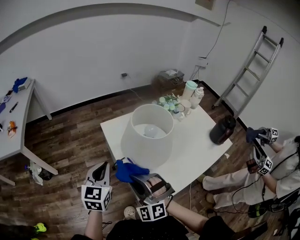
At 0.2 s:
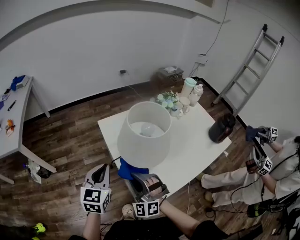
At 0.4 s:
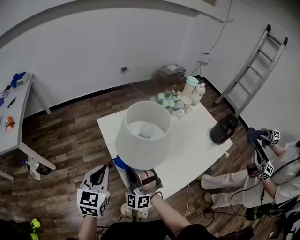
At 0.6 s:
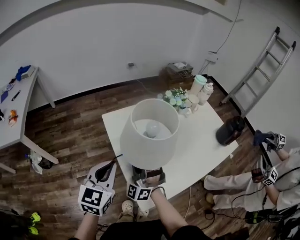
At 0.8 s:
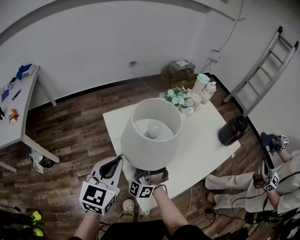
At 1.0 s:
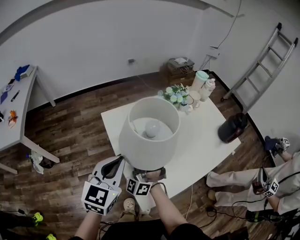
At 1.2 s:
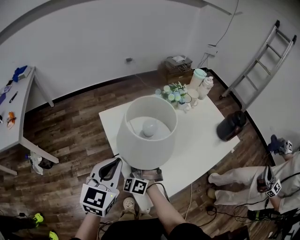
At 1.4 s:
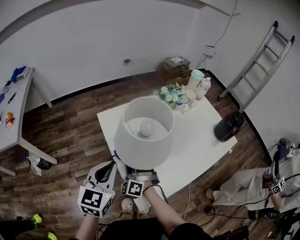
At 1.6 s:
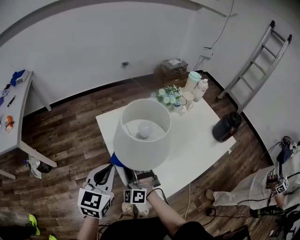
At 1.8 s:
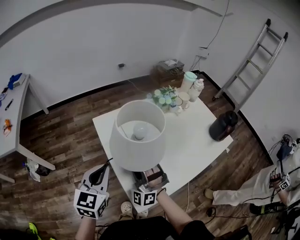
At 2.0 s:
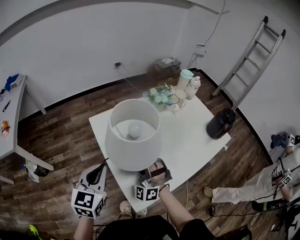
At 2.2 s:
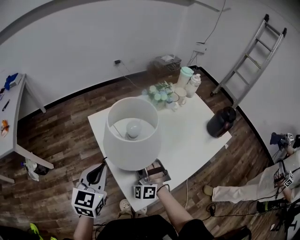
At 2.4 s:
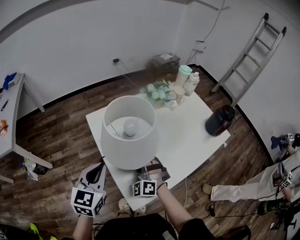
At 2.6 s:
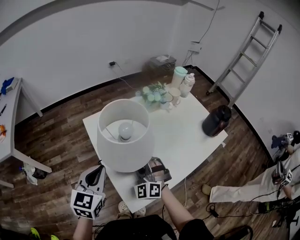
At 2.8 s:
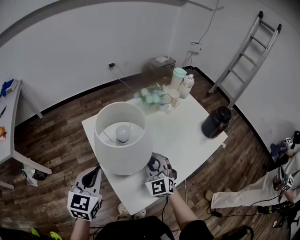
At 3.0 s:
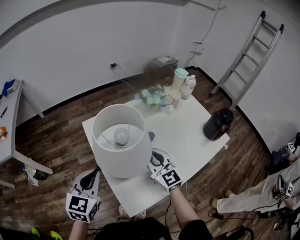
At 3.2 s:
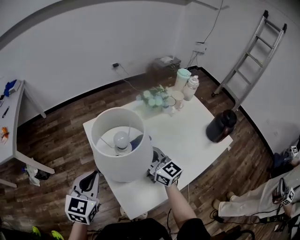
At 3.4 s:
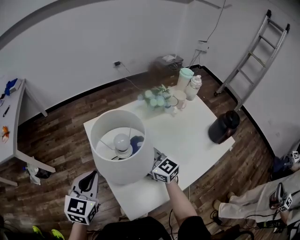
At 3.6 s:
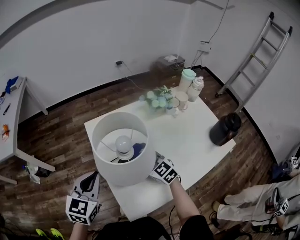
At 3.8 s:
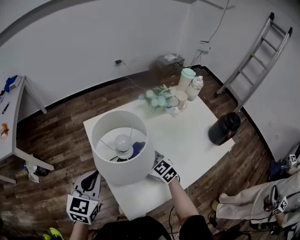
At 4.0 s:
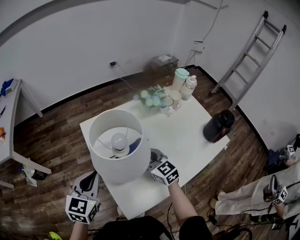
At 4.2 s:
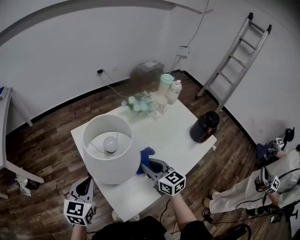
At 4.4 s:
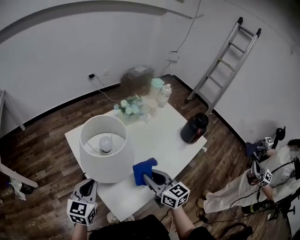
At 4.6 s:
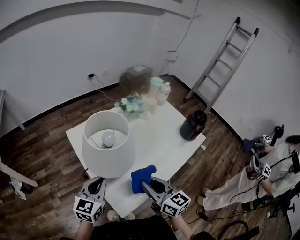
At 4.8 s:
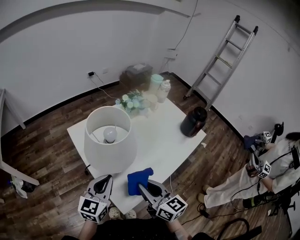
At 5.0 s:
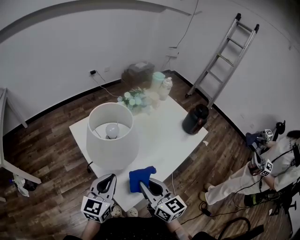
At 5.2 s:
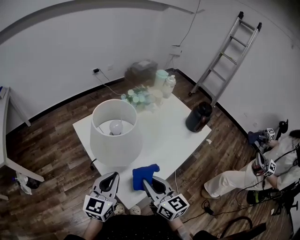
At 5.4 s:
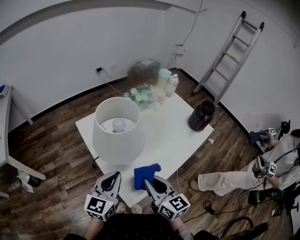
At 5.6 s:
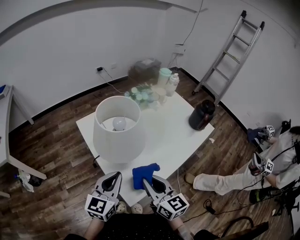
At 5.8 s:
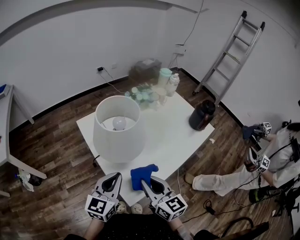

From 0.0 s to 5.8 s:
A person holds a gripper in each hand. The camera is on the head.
From 0.0 s to 1.4 s: The right gripper moves downward and forward, some 15 cm, and rotates some 20 degrees. Meanwhile the left gripper moves to the right, approximately 5 cm.
From 1.4 s to 2.8 s: The right gripper shifts approximately 20 cm to the right and upward, and rotates some 30 degrees.
From 2.8 s to 4.4 s: The right gripper moves backward and to the right, some 10 cm, and twists approximately 50 degrees clockwise, seen from behind.
From 4.4 s to 5.8 s: The left gripper moves backward and to the right, approximately 10 cm. The right gripper is displaced backward and to the left by approximately 10 cm.

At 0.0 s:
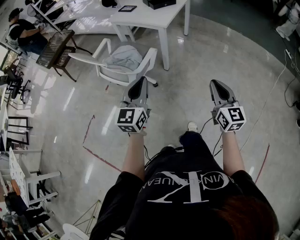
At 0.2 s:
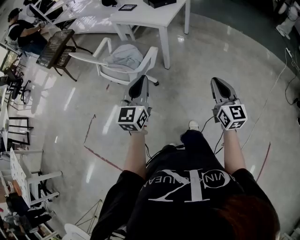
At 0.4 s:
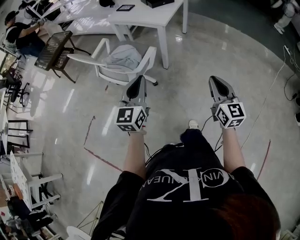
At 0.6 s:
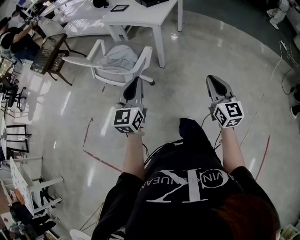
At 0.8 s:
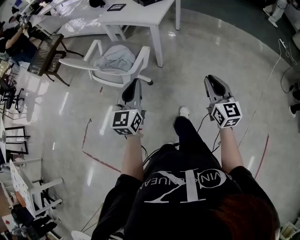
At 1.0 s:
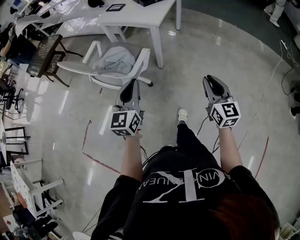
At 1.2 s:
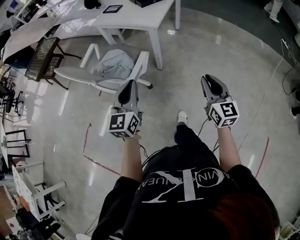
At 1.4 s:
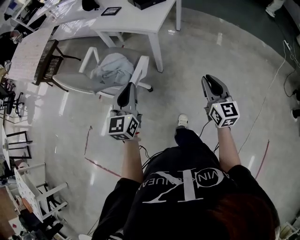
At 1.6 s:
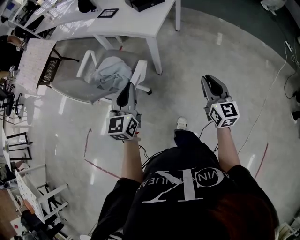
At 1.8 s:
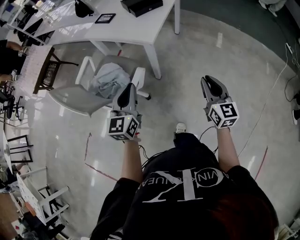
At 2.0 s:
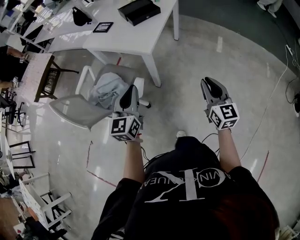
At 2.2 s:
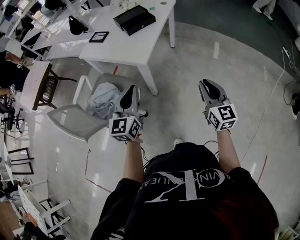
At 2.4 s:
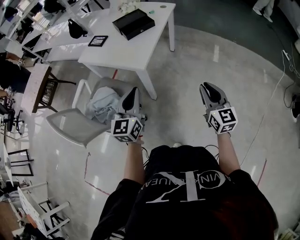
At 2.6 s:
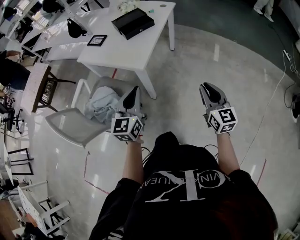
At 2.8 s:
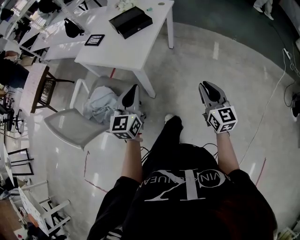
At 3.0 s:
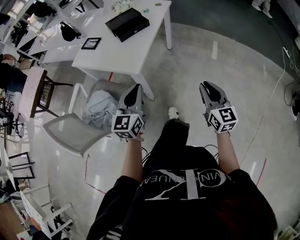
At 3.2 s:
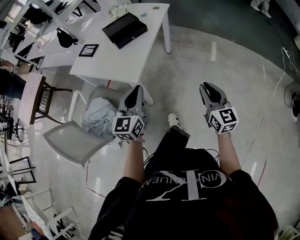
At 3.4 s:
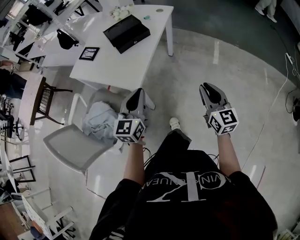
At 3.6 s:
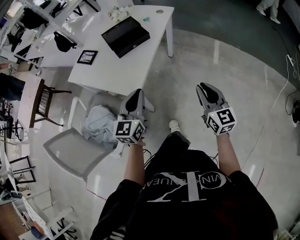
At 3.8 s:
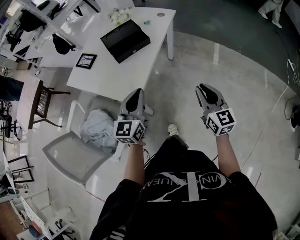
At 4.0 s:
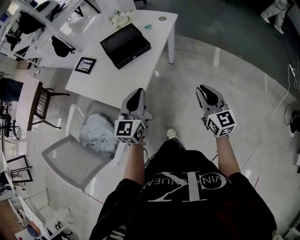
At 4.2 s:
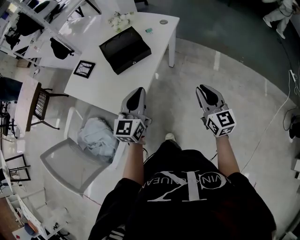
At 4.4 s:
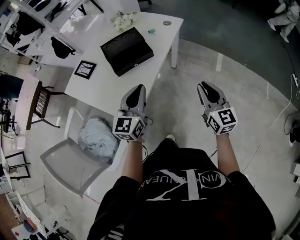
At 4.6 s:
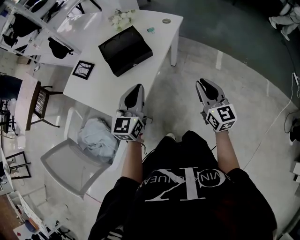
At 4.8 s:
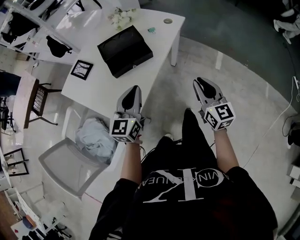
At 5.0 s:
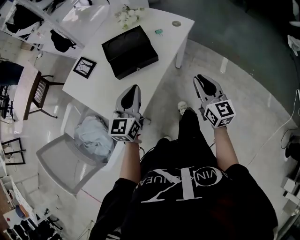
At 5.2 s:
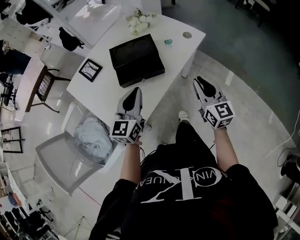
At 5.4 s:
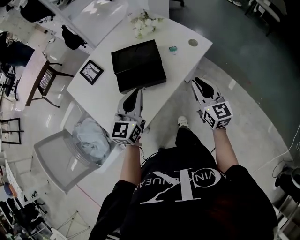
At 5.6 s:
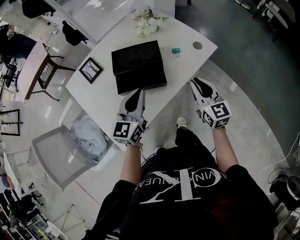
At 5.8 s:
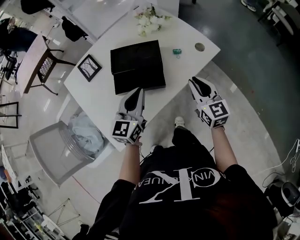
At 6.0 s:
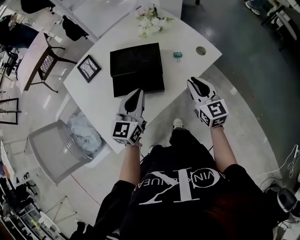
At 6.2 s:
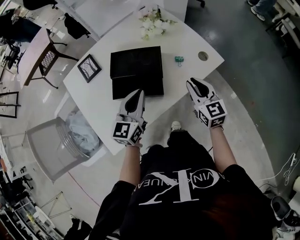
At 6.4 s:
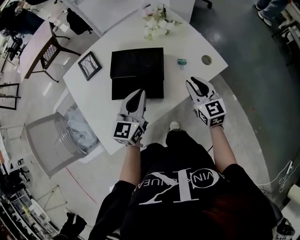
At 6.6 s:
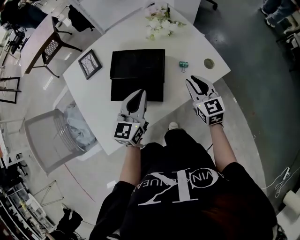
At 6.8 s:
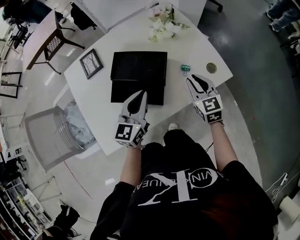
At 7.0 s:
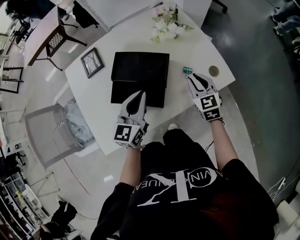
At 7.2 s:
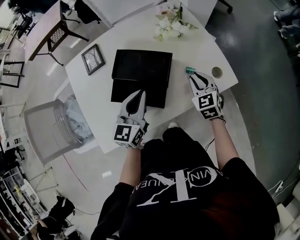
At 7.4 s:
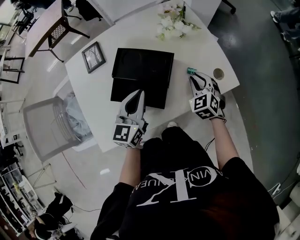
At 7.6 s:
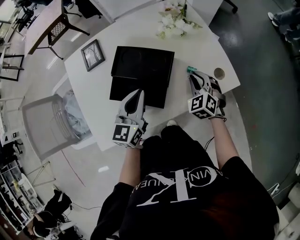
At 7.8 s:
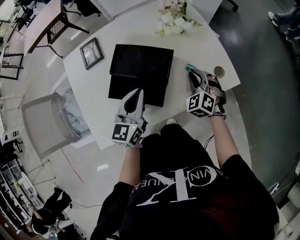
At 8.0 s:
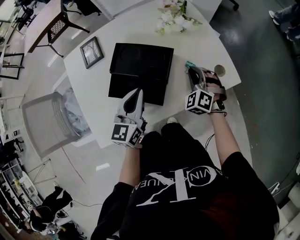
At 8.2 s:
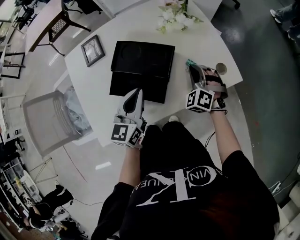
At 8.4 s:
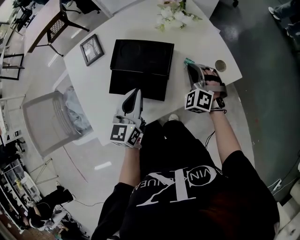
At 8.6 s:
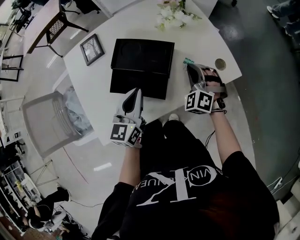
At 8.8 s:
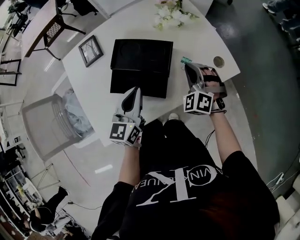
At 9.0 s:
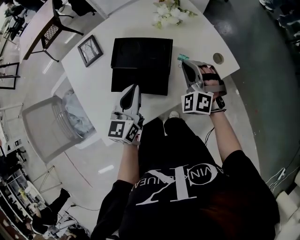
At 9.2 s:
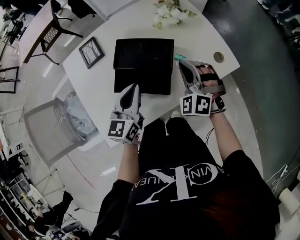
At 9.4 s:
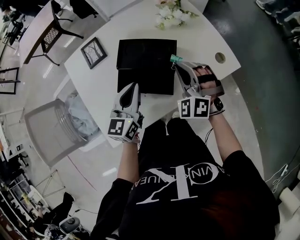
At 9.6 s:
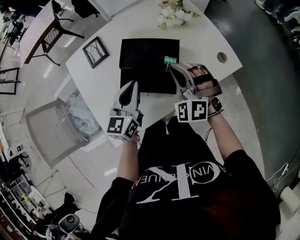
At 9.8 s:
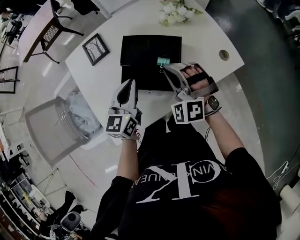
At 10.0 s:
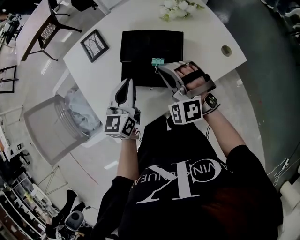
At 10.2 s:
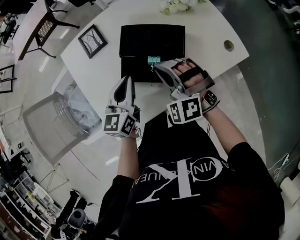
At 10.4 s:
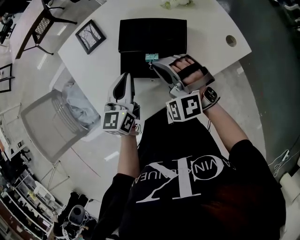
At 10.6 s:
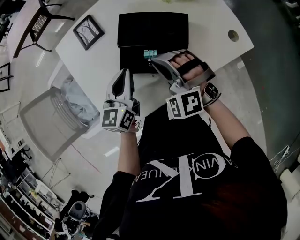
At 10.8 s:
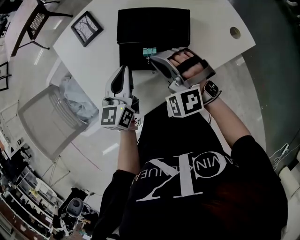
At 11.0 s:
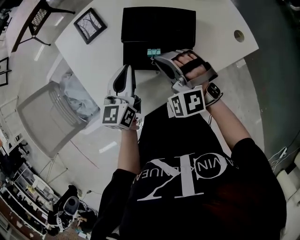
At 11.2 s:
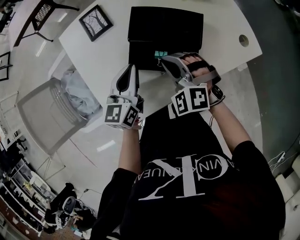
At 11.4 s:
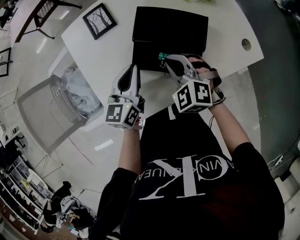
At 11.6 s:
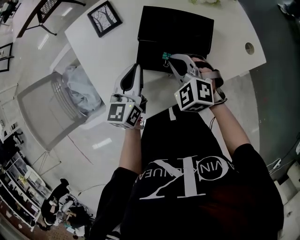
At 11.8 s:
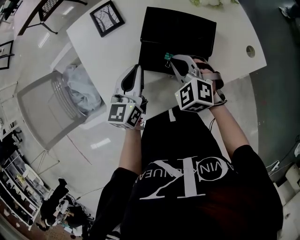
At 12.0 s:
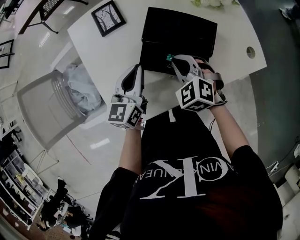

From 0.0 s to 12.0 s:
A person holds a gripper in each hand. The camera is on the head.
From 0.0 s to 1.6 s: The grippers both shift forward by approximately 20 cm.
From 1.6 s to 3.0 s: Both grippers move forward and to the right, roughly 25 cm.
From 3.0 s to 4.4 s: The grippers both shift forward by approximately 30 cm.
From 4.4 s to 6.0 s: The right gripper moves about 30 cm, and turns by approximately 30 degrees. Meanwhile the left gripper changes place by roughly 20 cm, and turns by approximately 20 degrees.
From 6.0 s to 7.6 s: The left gripper heads forward, covering approximately 5 cm. Meanwhile the right gripper goes roughly 20 cm forward and downward, and rotates around the line of its fingers by approximately 50 degrees, counterclockwise from behind.
From 7.6 s to 9.0 s: The right gripper heads upward and to the left, covering about 10 cm, and rotates about 20 degrees.
From 9.0 s to 10.4 s: The right gripper travels to the left by about 15 cm; the left gripper is displaced to the left by roughly 5 cm.
From 10.4 s to 12.0 s: The left gripper changes place by roughly 5 cm. Meanwhile the right gripper travels downward by about 10 cm, and turns by roughly 30 degrees.

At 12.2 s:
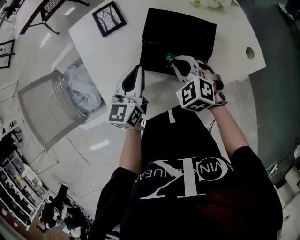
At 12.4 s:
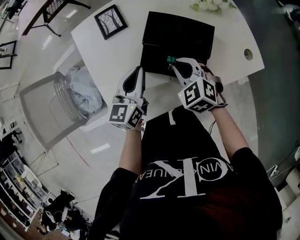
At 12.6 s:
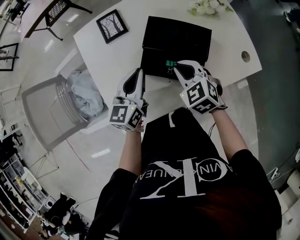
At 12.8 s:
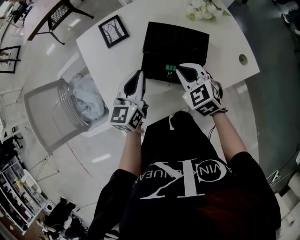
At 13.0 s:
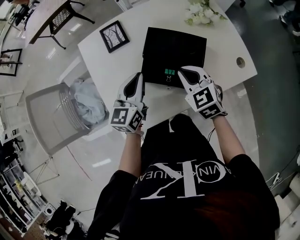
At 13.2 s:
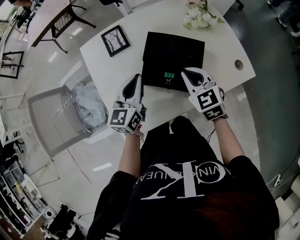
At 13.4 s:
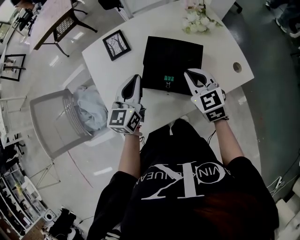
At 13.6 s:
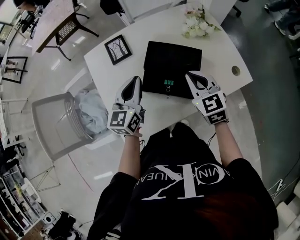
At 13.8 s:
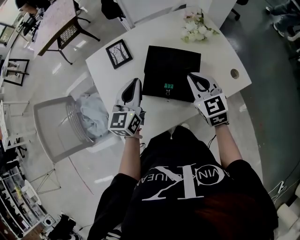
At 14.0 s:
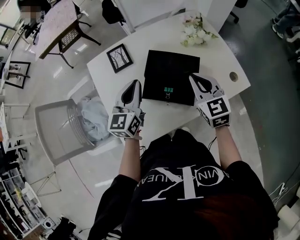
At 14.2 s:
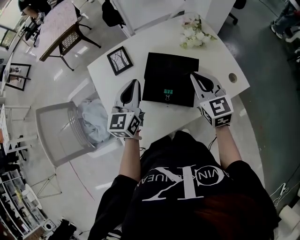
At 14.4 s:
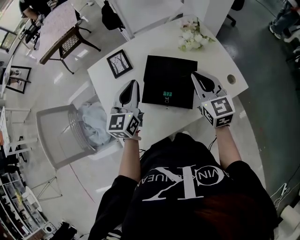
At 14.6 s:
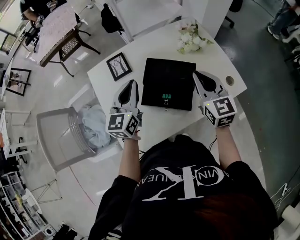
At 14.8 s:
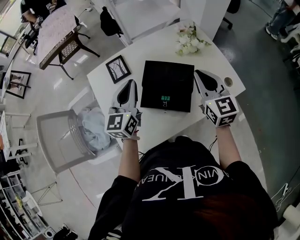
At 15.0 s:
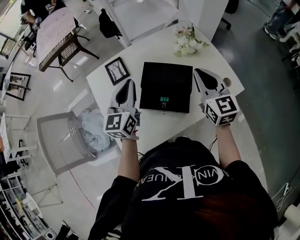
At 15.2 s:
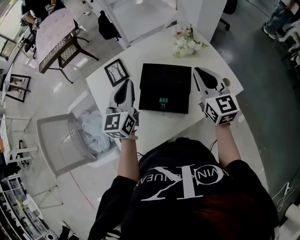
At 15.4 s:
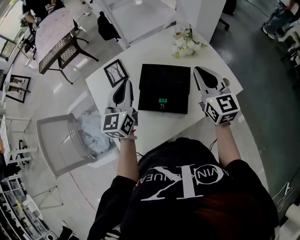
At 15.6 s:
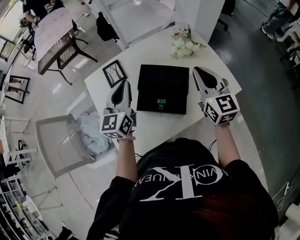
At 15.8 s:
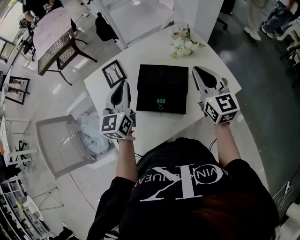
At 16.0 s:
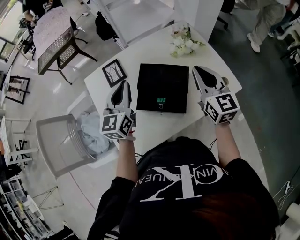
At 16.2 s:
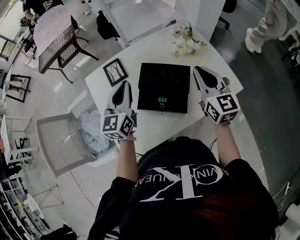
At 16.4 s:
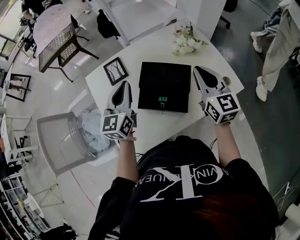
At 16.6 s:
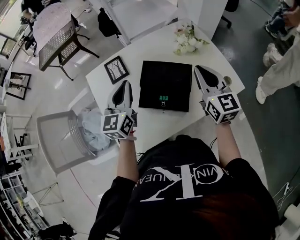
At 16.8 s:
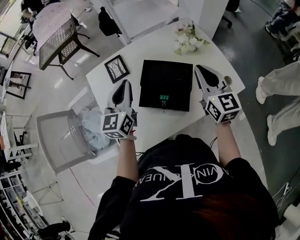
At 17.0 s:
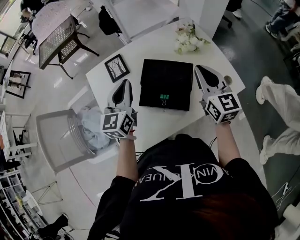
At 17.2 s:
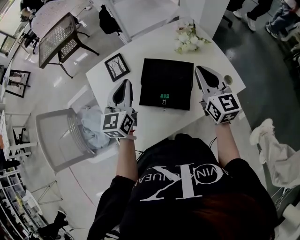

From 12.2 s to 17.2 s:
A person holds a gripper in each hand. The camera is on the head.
From 12.2 s to 13.8 s: The left gripper shifts some 10 cm upward; the right gripper goes roughly 15 cm upward and to the right, and changes its angle by some 40 degrees.
From 13.8 s to 15.6 s: The right gripper goes some 10 cm upward and to the right, and changes its angle by about 20 degrees. Meanwhile the left gripper travels upward by roughly 5 cm.
From 15.6 s to 17.2 s: There are only small adjustments of the grippers.
